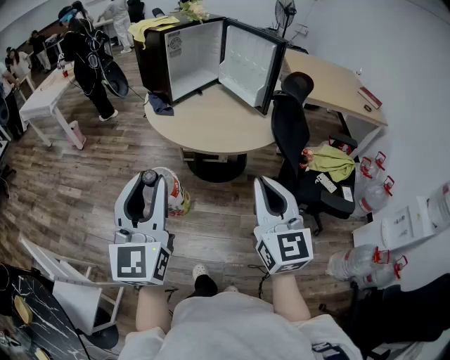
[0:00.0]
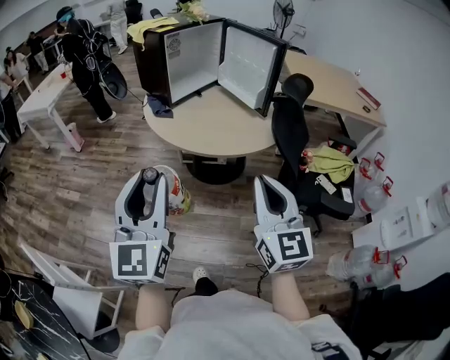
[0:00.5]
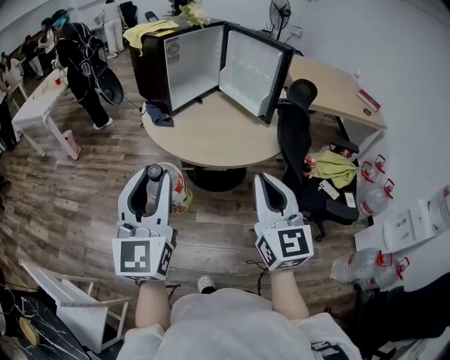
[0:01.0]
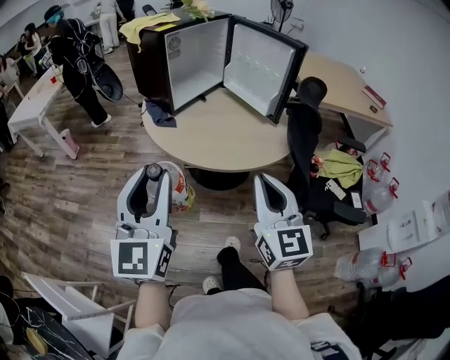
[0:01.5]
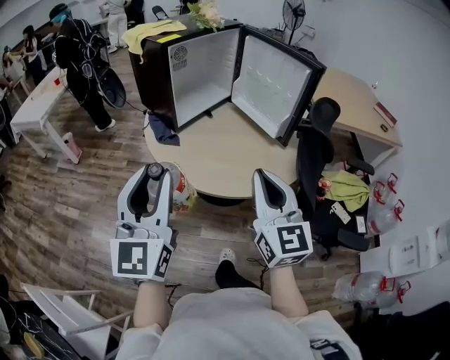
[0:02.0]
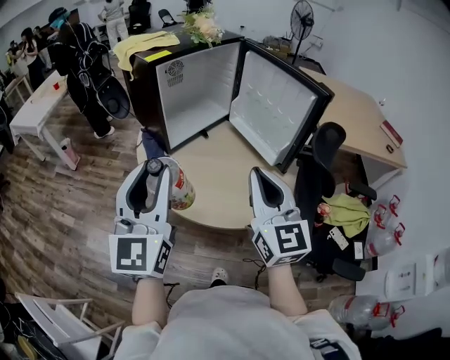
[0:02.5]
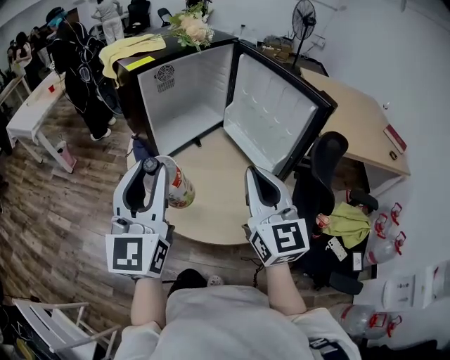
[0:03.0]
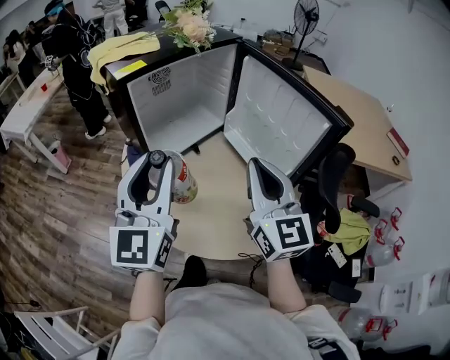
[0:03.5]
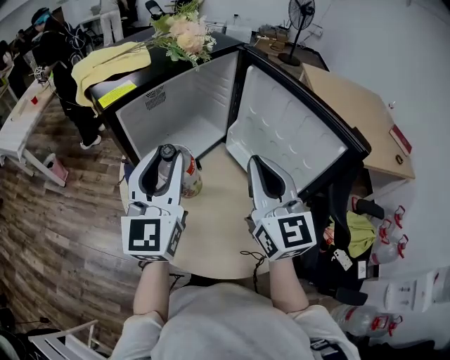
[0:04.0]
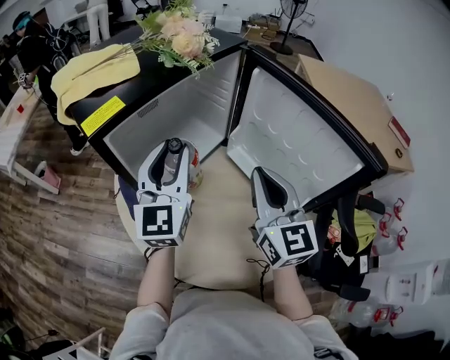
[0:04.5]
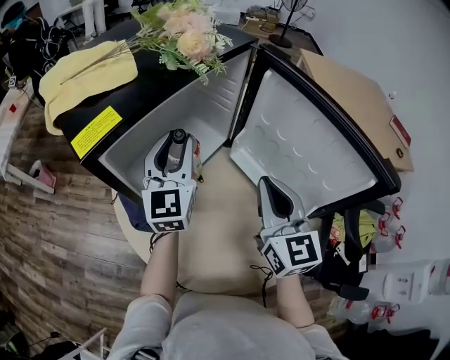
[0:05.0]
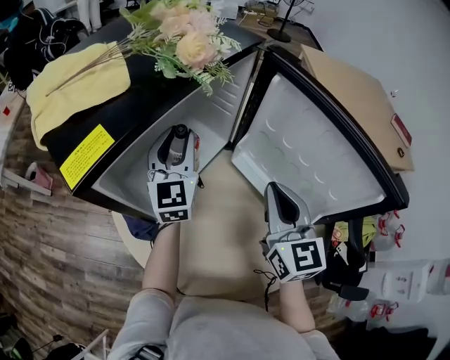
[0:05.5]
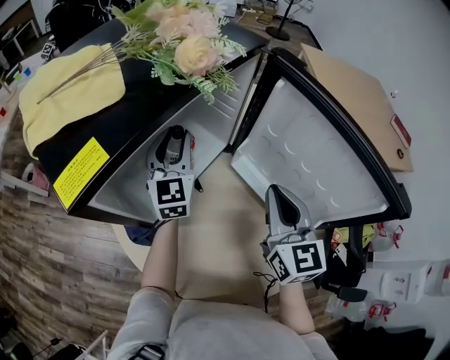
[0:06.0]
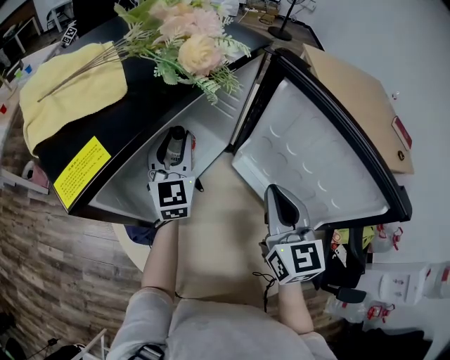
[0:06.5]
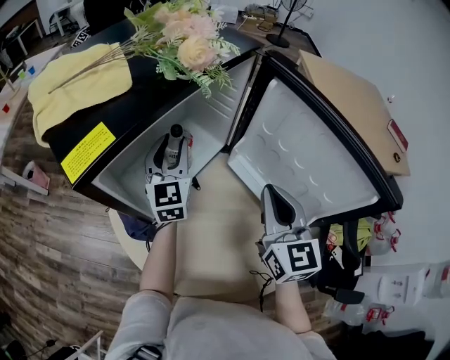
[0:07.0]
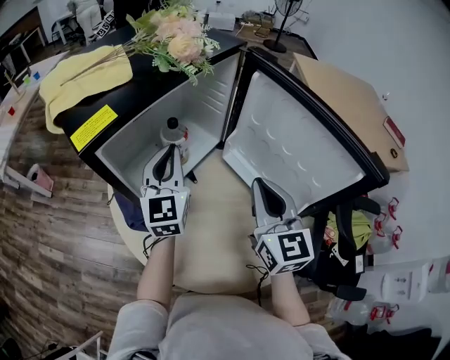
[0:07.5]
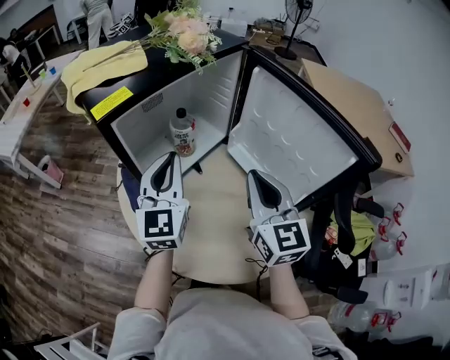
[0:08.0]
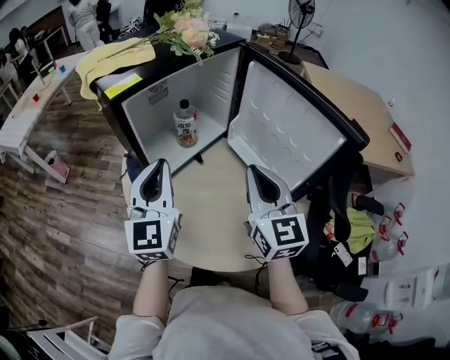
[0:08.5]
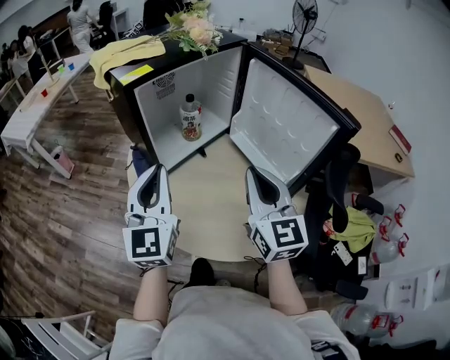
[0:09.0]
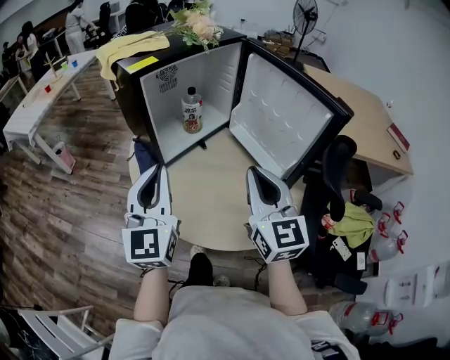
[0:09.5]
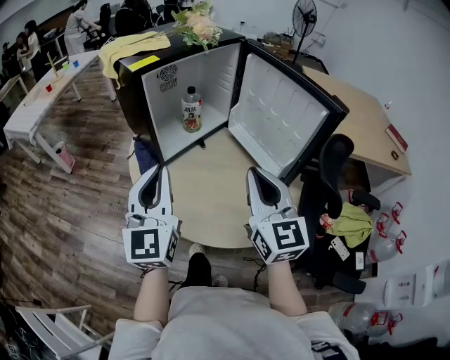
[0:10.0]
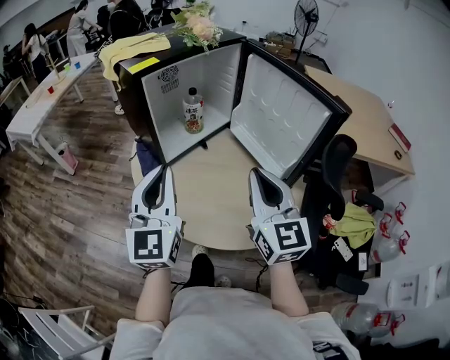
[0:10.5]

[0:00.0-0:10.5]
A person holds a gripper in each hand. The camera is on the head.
0:00.0 to 0:02.0: Both grippers travel together forward, some 25 cm.
0:02.0 to 0:04.0: Both grippers move forward, some 35 cm.
0:04.0 to 0:06.5: The right gripper shifts approximately 15 cm forward and downward. The left gripper heads forward and downward, covering some 30 cm.
0:06.5 to 0:08.5: The left gripper goes about 30 cm backward, and closes its fingers. Meanwhile the right gripper goes about 15 cm backward.
0:08.5 to 0:10.5: The grippers both shift backward by some 10 cm.

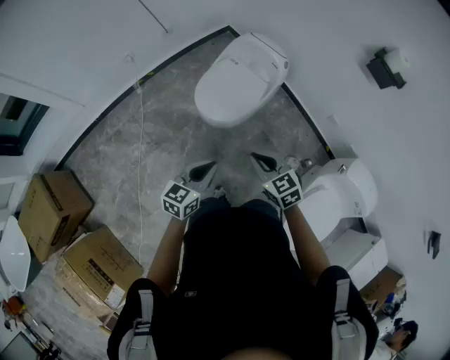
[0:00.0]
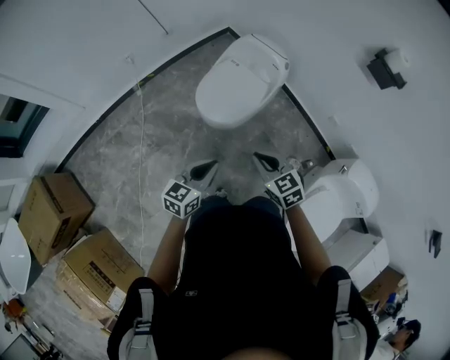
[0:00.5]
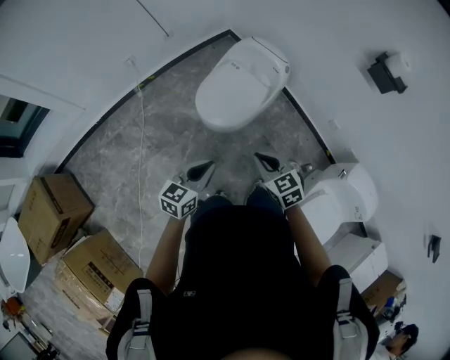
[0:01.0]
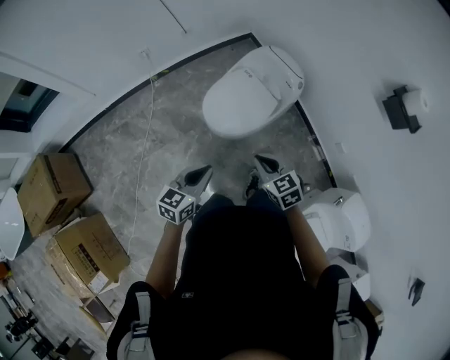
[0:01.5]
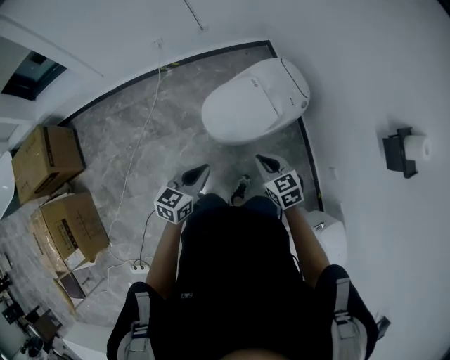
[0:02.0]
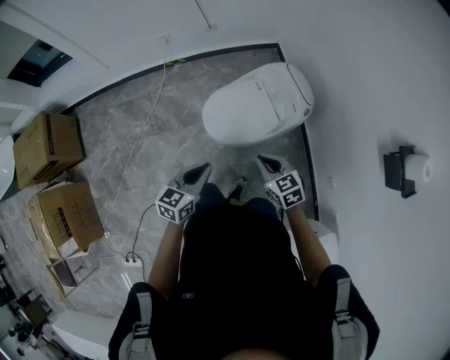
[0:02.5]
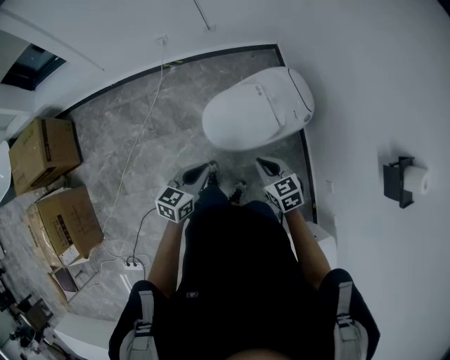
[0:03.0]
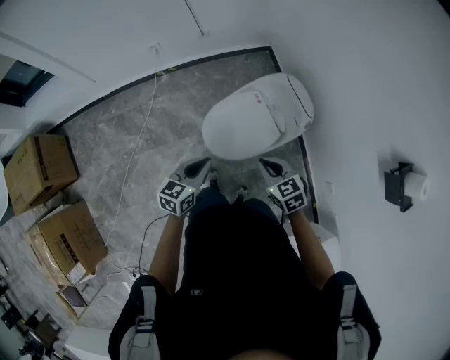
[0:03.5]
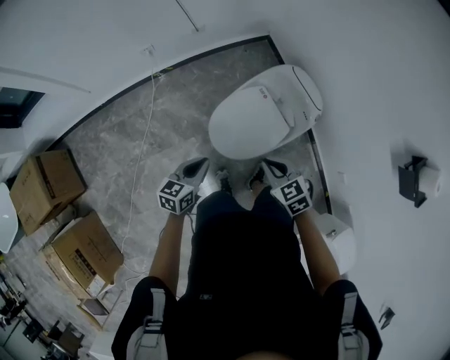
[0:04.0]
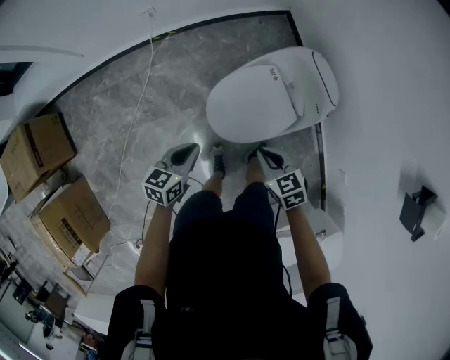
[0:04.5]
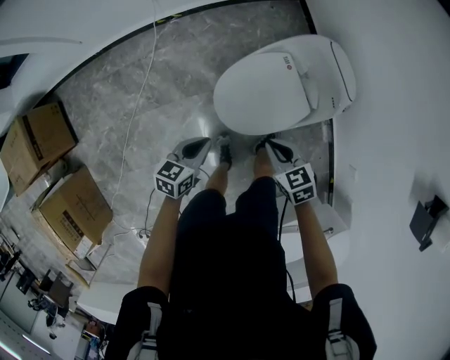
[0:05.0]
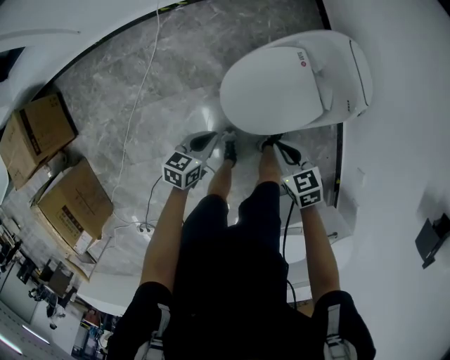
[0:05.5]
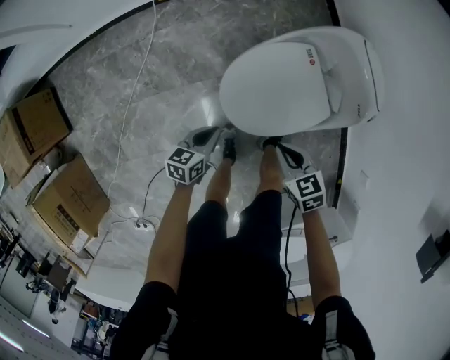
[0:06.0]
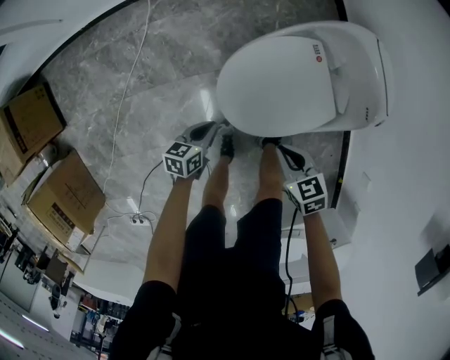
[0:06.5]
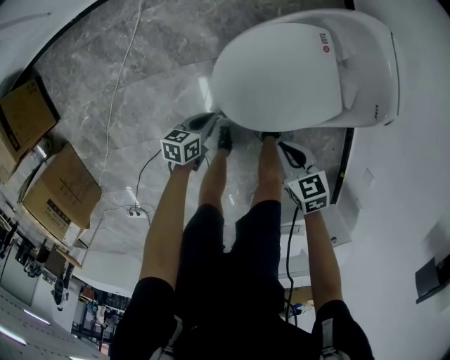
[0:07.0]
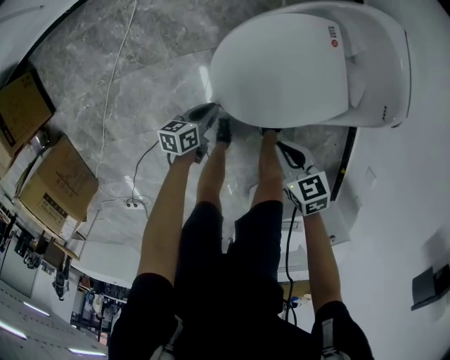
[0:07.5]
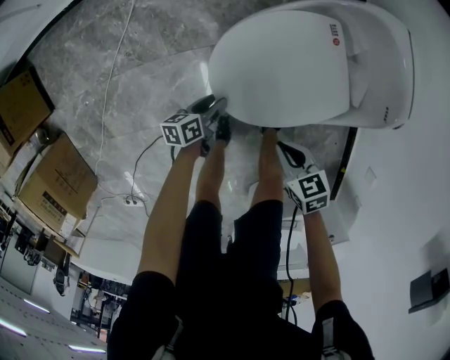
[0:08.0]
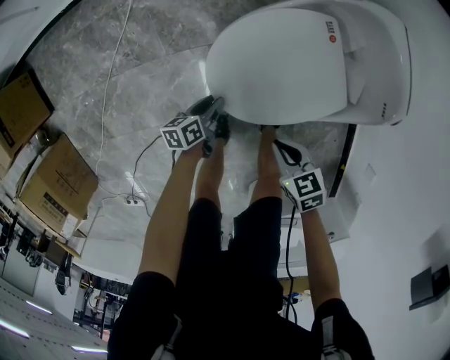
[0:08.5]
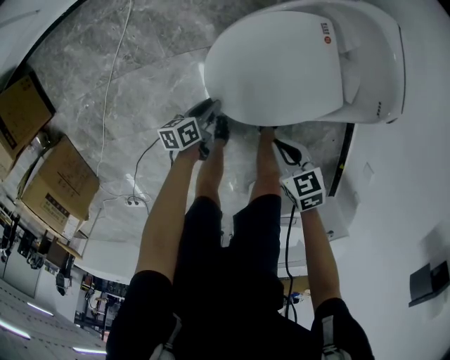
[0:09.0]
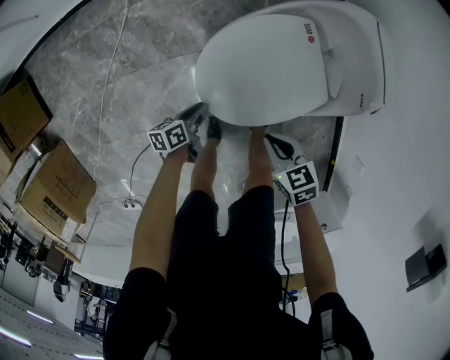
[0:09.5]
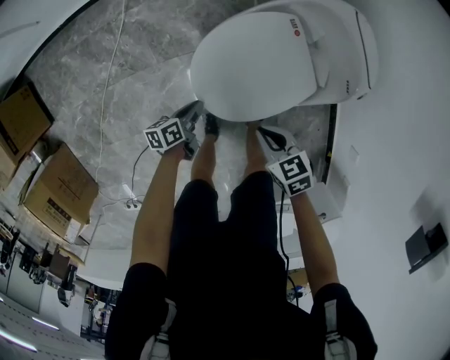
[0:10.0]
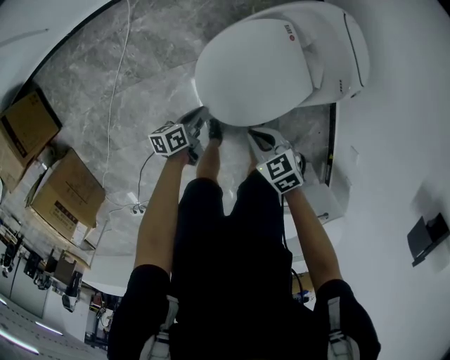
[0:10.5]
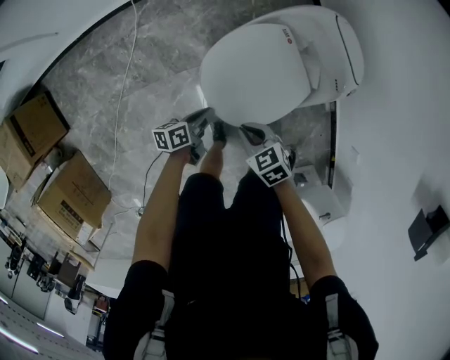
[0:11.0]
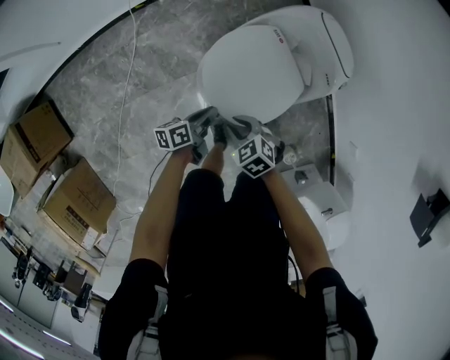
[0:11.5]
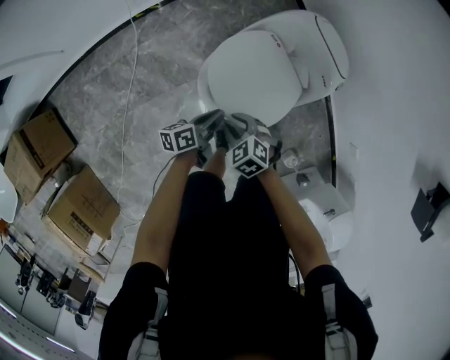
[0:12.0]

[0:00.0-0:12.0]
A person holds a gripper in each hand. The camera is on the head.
0:00.0 to 0:02.0: Both grippers travel together forward and to the right, roughly 15 cm. The left gripper rotates roughly 20 degrees.
0:02.0 to 0:04.0: The right gripper heads forward and to the left, covering about 15 cm. The left gripper travels forward, downward and to the left by roughly 25 cm.
0:04.0 to 0:06.0: Both grippers move downward, about 25 cm.
0:06.0 to 0:08.0: Both grippers travel together downward, approximately 15 cm. The left gripper swivels about 30 degrees, and opens its fingers.
0:08.0 to 0:10.0: Both grippers travel together upward, roughly 10 cm. The left gripper closes up.
0:10.0 to 0:12.0: The left gripper shifts roughly 20 cm upward and to the right. Meanwhile the right gripper heads to the left and upward, covering about 10 cm, swivels roughly 20 degrees, and opens up.

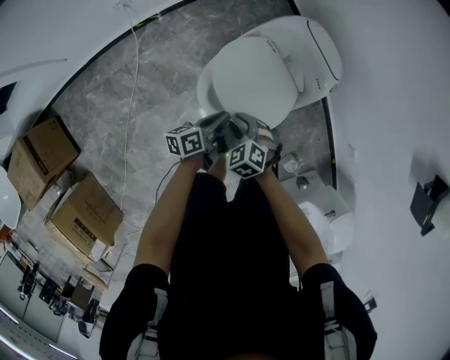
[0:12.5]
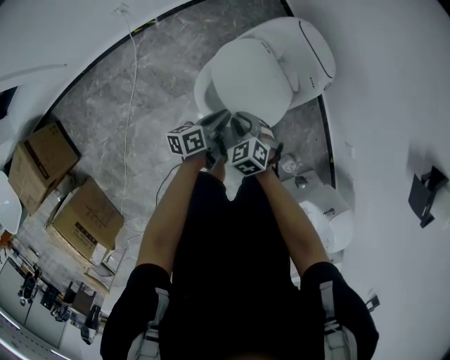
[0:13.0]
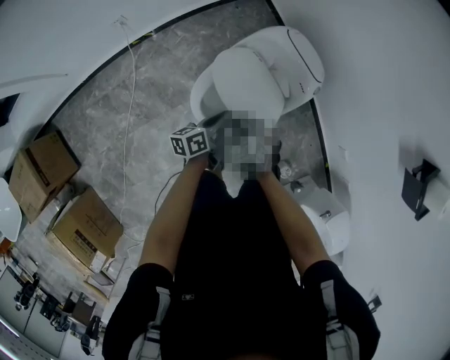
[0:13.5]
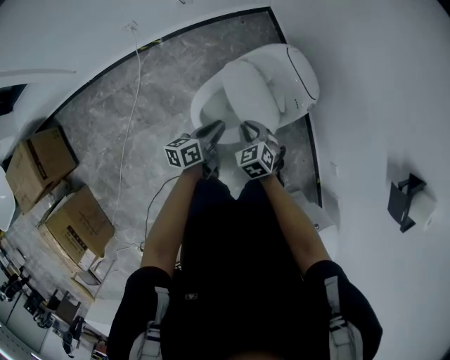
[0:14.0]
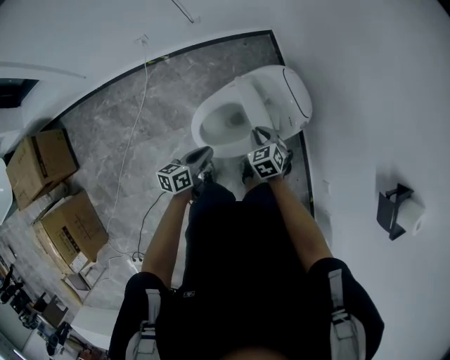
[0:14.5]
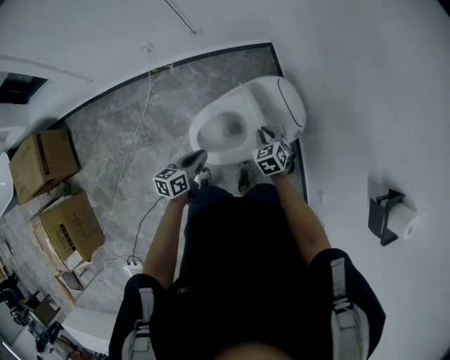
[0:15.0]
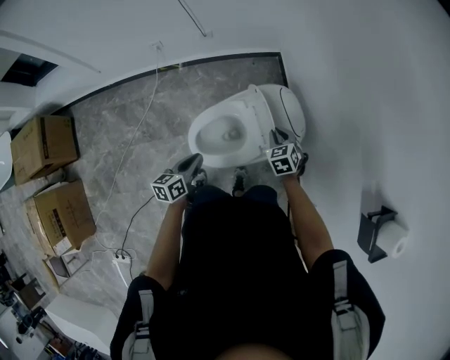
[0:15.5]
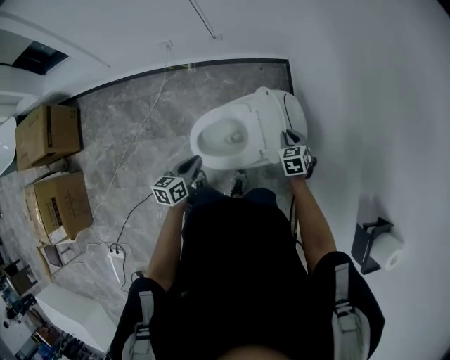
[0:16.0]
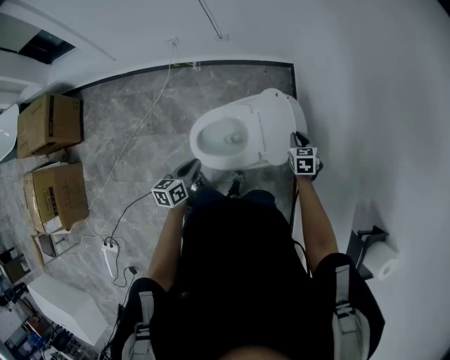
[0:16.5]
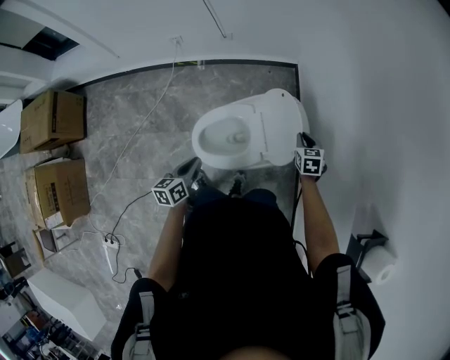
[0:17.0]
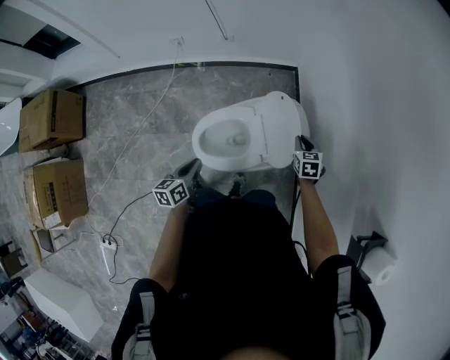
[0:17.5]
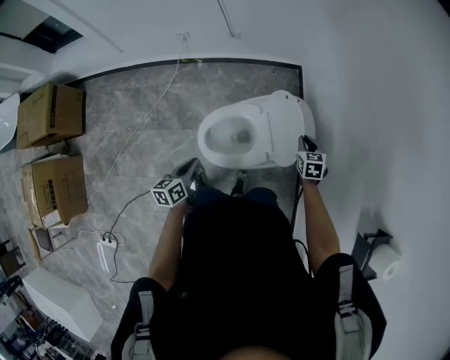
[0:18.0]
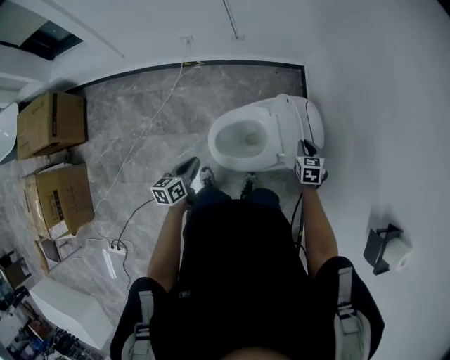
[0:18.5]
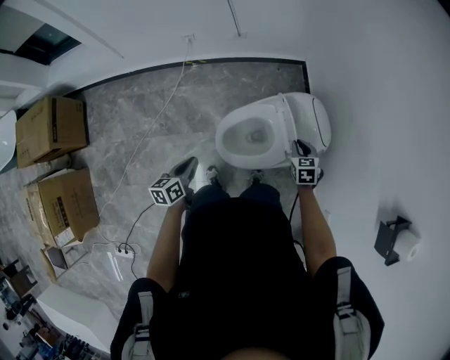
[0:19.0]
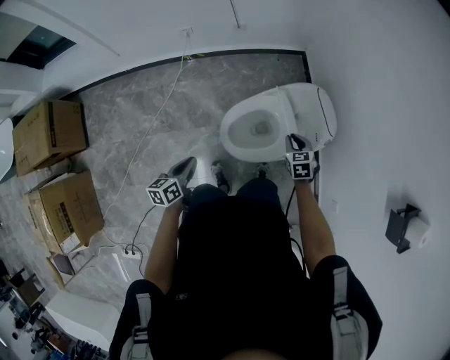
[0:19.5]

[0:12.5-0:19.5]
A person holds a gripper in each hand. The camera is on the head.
0:12.5 to 0:14.5: The left gripper shifts some 10 cm upward. The right gripper heads to the right, upward and forward, covering roughly 20 cm.
0:14.5 to 0:16.0: The right gripper travels to the right and forward by roughly 15 cm; the left gripper changes place by about 5 cm, and turns by about 20 degrees.
0:16.0 to 0:17.5: The right gripper goes about 5 cm to the right.
0:17.5 to 0:19.5: The left gripper goes about 20 cm to the left. Meanwhile the right gripper shifts about 25 cm to the left and backward.
